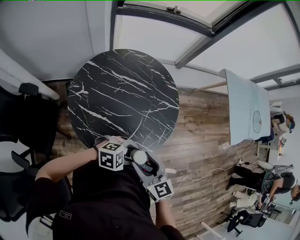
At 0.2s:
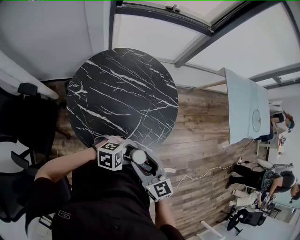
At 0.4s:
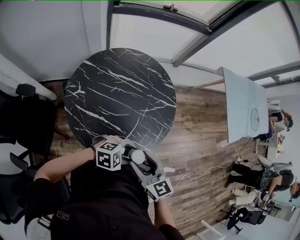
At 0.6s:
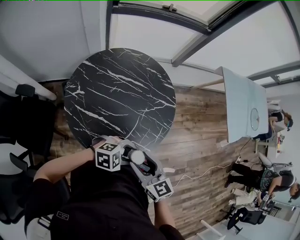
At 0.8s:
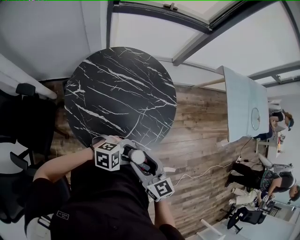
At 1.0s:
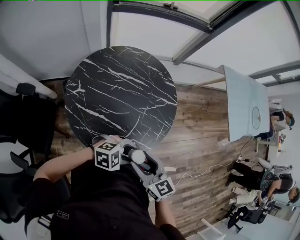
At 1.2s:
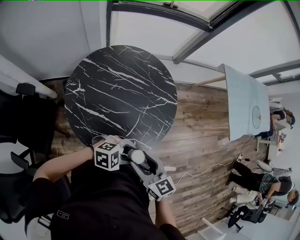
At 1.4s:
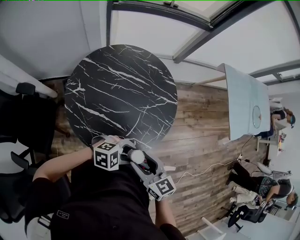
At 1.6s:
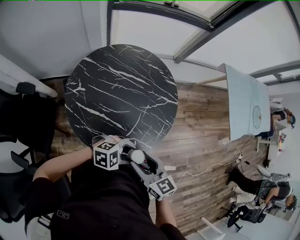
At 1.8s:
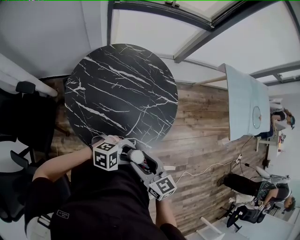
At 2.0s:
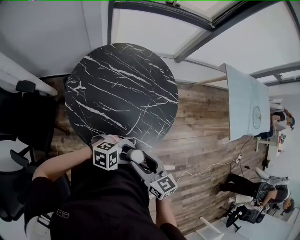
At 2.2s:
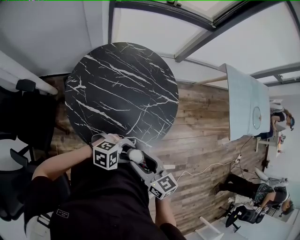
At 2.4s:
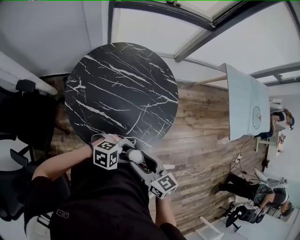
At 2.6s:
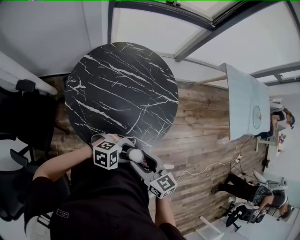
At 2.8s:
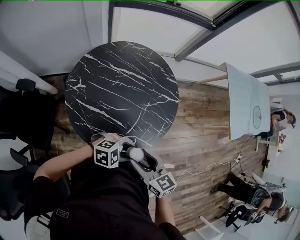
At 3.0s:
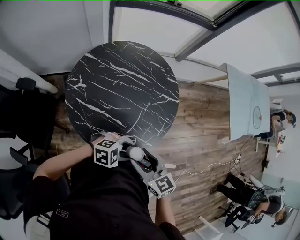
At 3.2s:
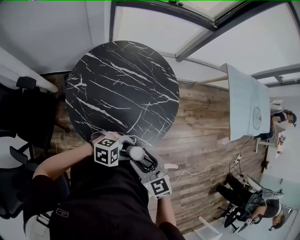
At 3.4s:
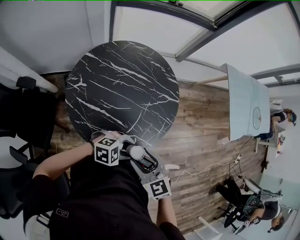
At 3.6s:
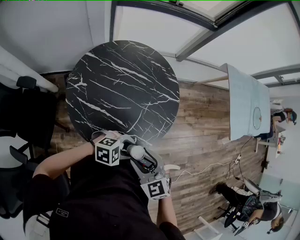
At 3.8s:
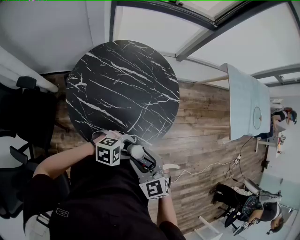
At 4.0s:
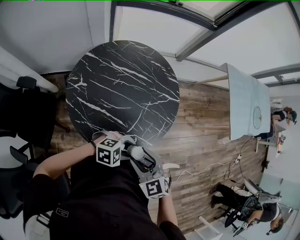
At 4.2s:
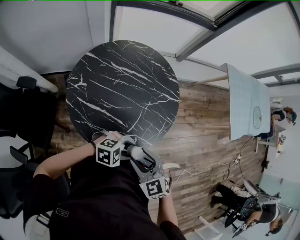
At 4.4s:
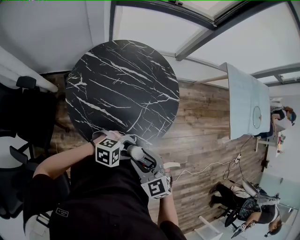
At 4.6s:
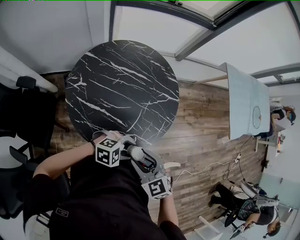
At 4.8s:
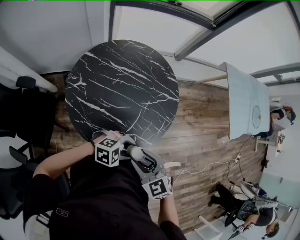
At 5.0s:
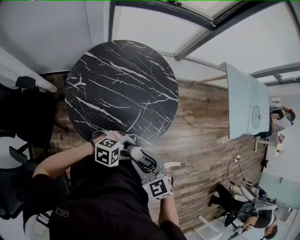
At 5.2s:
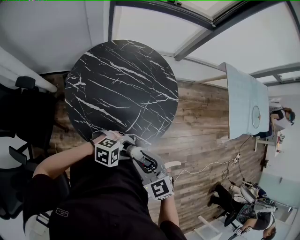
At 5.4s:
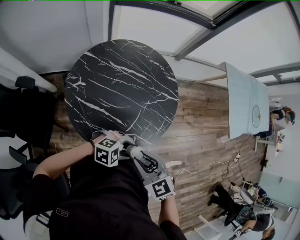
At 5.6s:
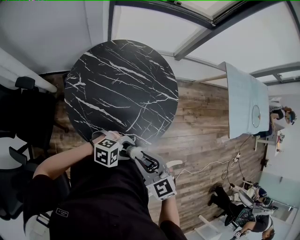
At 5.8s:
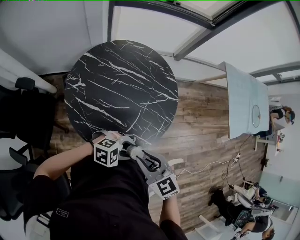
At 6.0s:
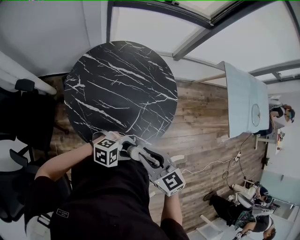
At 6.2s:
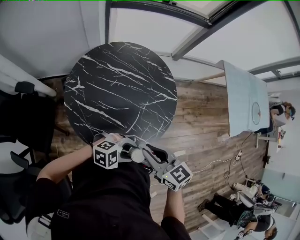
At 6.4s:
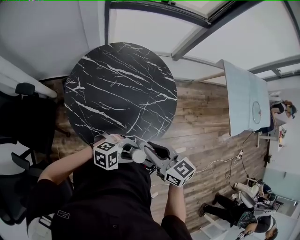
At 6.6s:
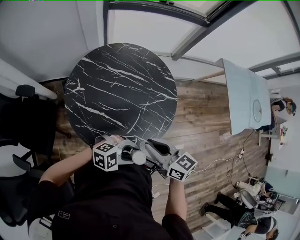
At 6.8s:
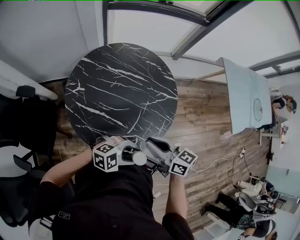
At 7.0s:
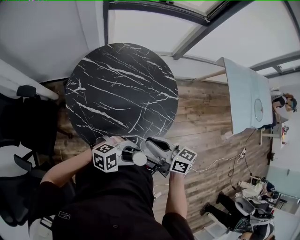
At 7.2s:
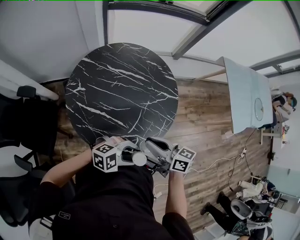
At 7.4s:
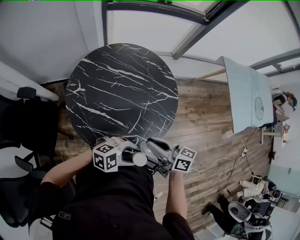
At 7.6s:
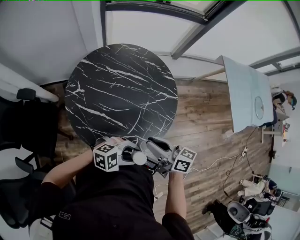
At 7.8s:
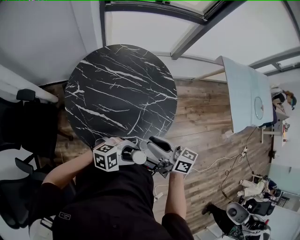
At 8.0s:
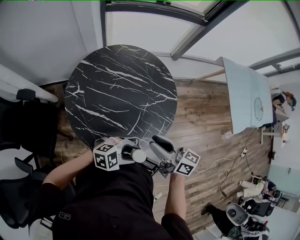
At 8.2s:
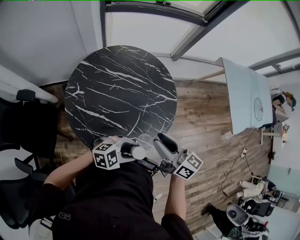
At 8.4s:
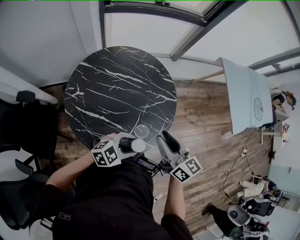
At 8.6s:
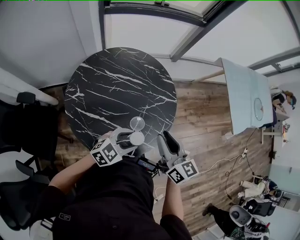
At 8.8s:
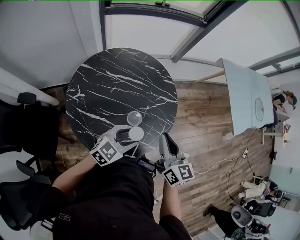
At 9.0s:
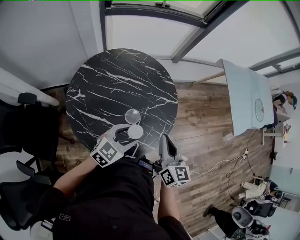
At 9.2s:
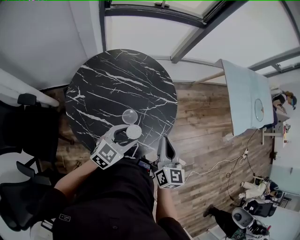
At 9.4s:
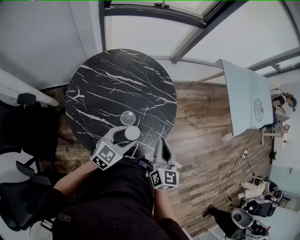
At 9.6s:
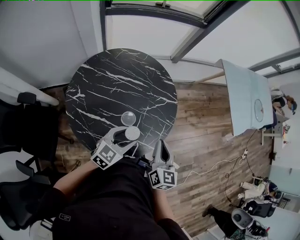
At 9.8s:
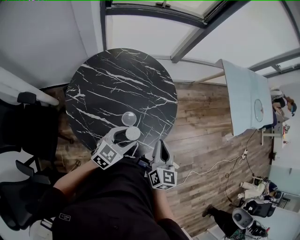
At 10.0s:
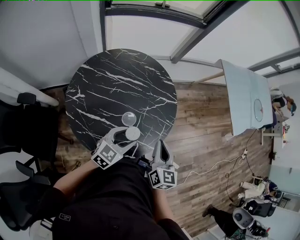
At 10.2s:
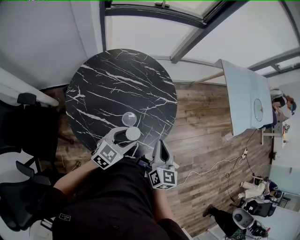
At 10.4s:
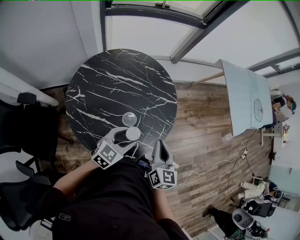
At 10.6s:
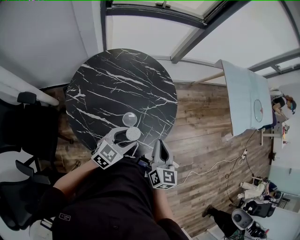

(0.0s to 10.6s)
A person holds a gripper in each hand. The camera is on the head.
0.0s - 3.0s: There are only small adjustments of the grippers.
3.0s - 4.6s: The right gripper rotates roughly 30 degrees.
4.6s - 6.0s: The right gripper closes up.
6.0s - 7.6s: The right gripper changes place by roughly 5 cm, and rotates roughly 40 degrees.
7.6s - 9.0s: The right gripper ends up approximately 10 cm from where it was, and swivels roughly 50 degrees. Meanwhile the left gripper ends up roughly 15 cm from where it was, and rotates some 40 degrees.
9.0s - 10.6s: The right gripper moves some 5 cm.

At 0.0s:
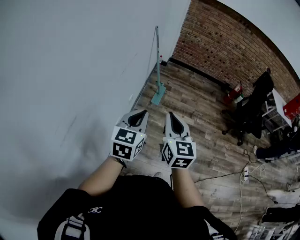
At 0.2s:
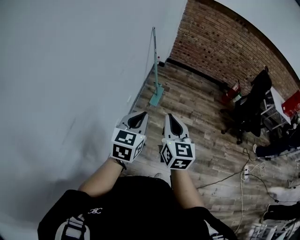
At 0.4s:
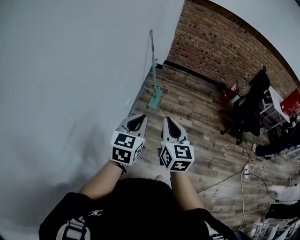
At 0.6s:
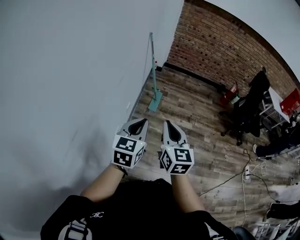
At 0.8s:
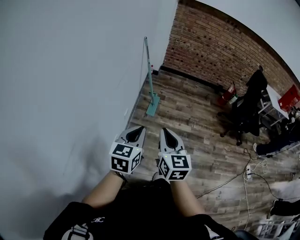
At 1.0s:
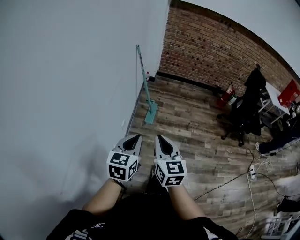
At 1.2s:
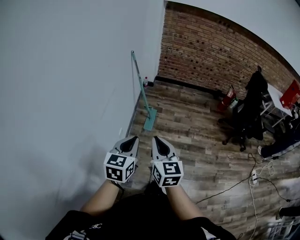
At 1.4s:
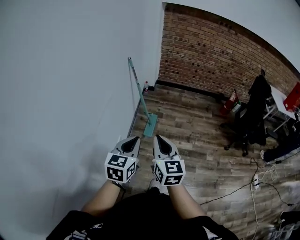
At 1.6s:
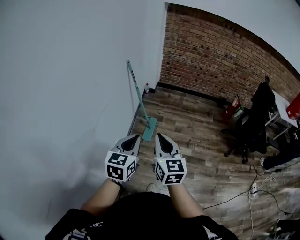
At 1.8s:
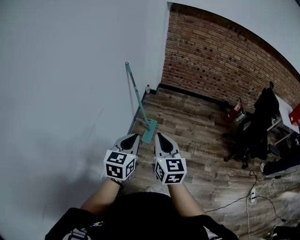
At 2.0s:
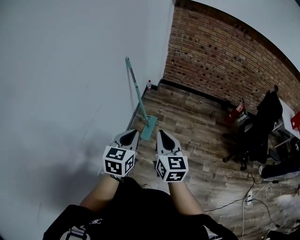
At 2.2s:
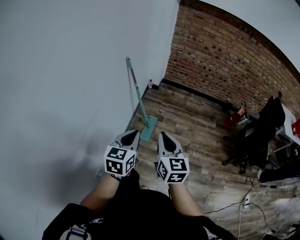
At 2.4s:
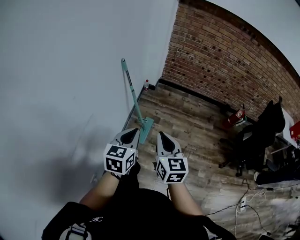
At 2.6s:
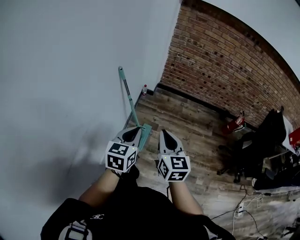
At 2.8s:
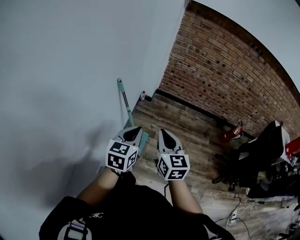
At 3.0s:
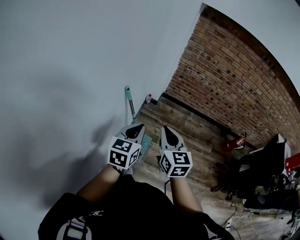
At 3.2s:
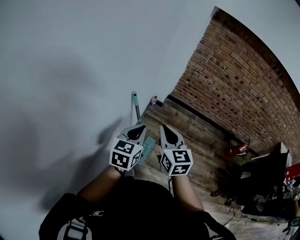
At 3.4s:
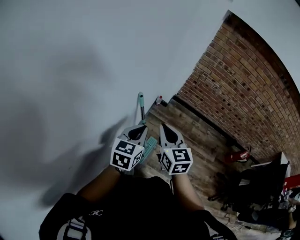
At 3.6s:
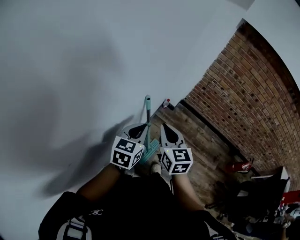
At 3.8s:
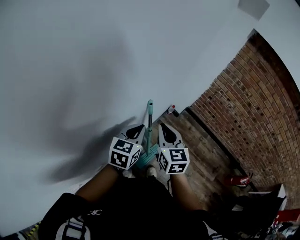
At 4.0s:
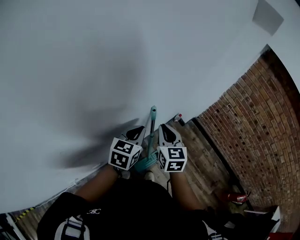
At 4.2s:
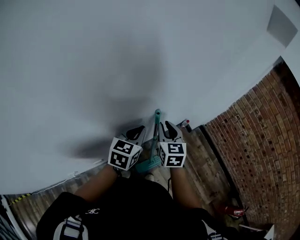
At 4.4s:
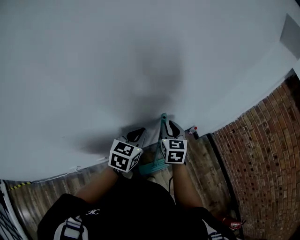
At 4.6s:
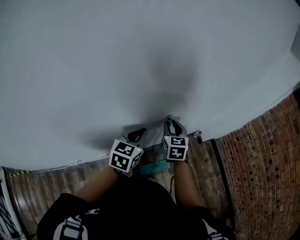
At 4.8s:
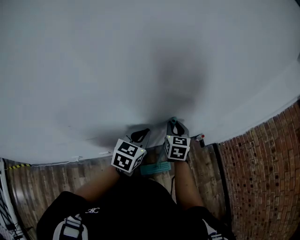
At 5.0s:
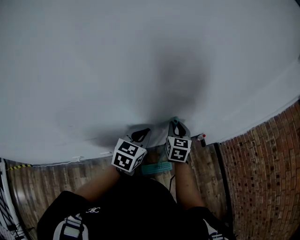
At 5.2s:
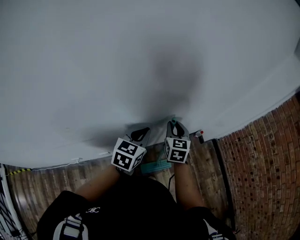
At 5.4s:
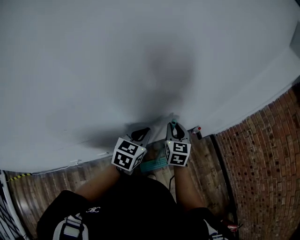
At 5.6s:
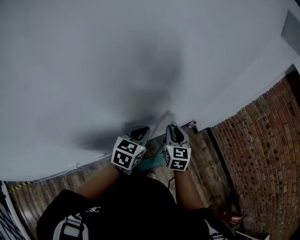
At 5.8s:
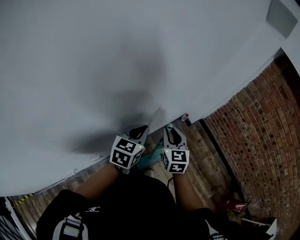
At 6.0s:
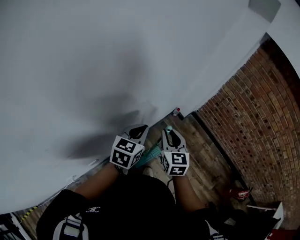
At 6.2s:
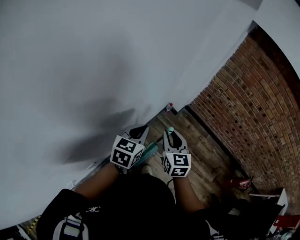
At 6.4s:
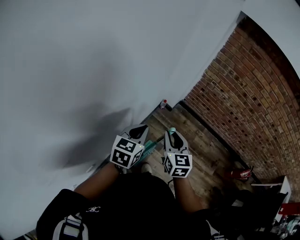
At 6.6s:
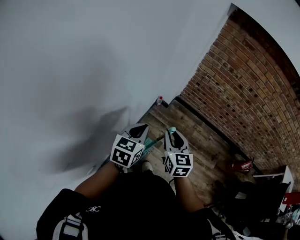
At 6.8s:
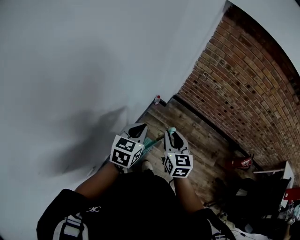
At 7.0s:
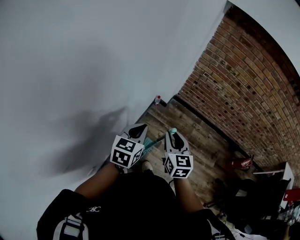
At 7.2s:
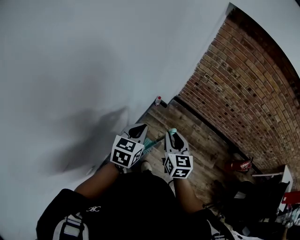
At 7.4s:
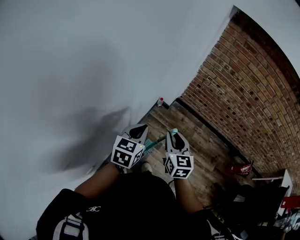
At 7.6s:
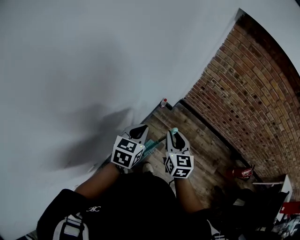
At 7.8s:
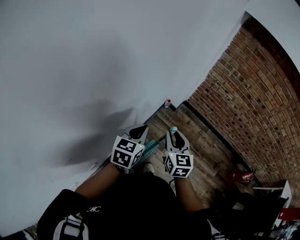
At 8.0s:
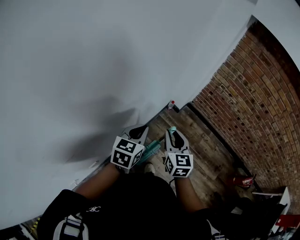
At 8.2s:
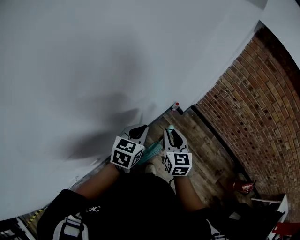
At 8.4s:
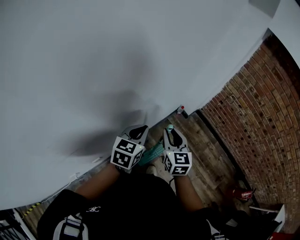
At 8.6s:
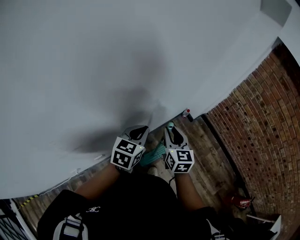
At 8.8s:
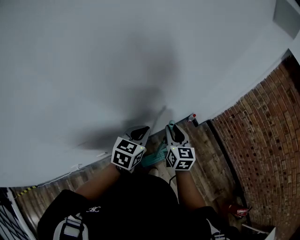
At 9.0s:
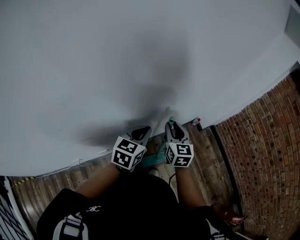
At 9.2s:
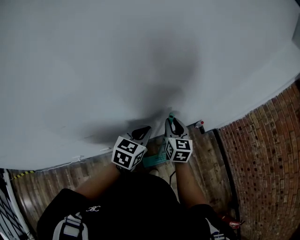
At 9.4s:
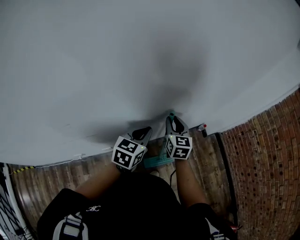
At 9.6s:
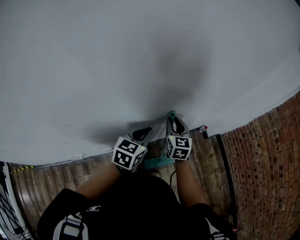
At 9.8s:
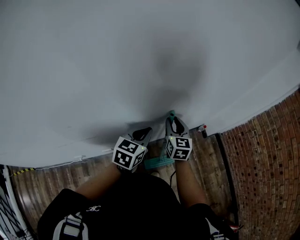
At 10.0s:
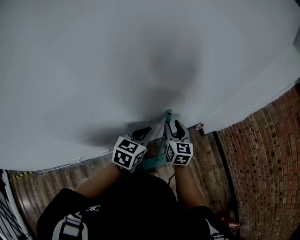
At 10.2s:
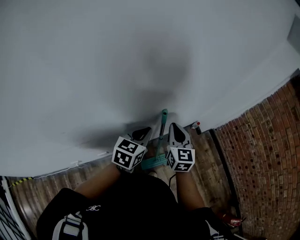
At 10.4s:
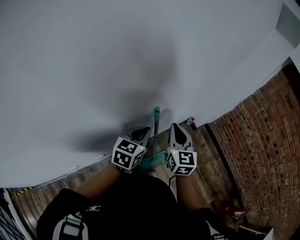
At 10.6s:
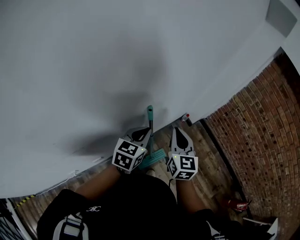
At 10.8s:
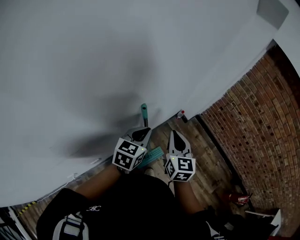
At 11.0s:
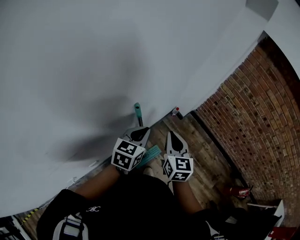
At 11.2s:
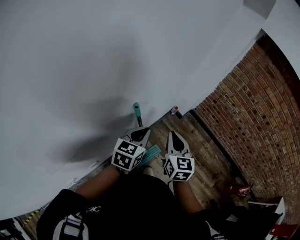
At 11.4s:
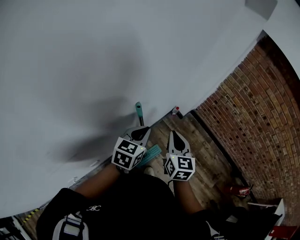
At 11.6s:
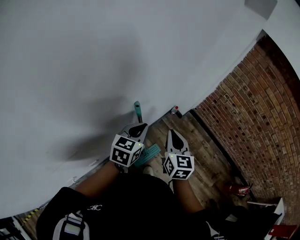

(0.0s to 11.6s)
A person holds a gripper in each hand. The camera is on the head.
0.0s - 1.4s: The two grippers go about 20 cm forward.
1.4s - 2.8s: Both grippers are carried forward, some 40 cm.
2.8s - 4.4s: The right gripper moves some 35 cm, and swivels some 40 degrees. Meanwhile the left gripper shifts by approximately 25 cm, and turns by approximately 40 degrees.
4.4s - 5.8s: The right gripper moves to the right and backward, approximately 5 cm.
5.8s - 7.2s: The two grippers go some 15 cm to the right. The right gripper swivels roughly 20 degrees. The left gripper turns by some 20 degrees.
7.2s - 8.8s: The right gripper shifts by roughly 15 cm, and swivels roughly 30 degrees. Meanwhile the left gripper changes place by roughly 10 cm, and changes its angle by some 20 degrees.
8.8s - 10.2s: The right gripper closes up.
10.2s - 11.6s: The left gripper is displaced to the right by about 10 cm. The right gripper is displaced to the right and backward by about 10 cm, and swivels roughly 20 degrees.

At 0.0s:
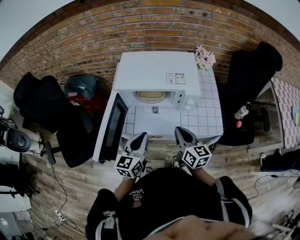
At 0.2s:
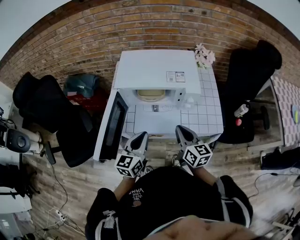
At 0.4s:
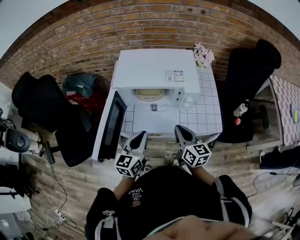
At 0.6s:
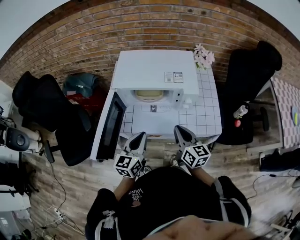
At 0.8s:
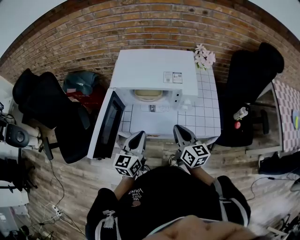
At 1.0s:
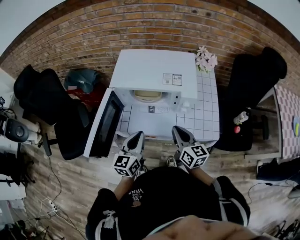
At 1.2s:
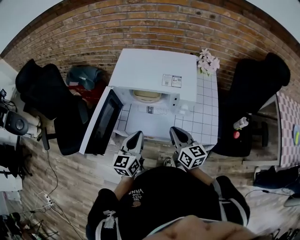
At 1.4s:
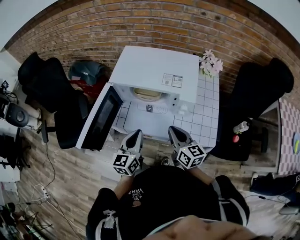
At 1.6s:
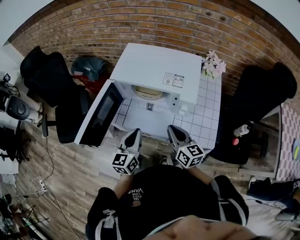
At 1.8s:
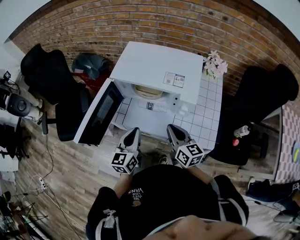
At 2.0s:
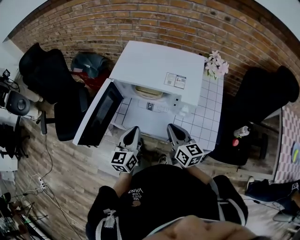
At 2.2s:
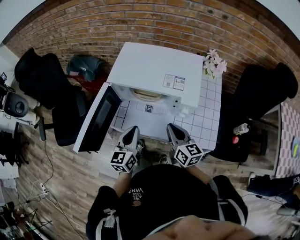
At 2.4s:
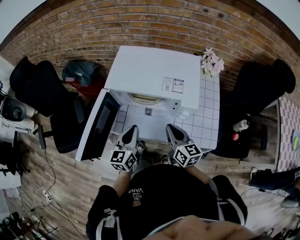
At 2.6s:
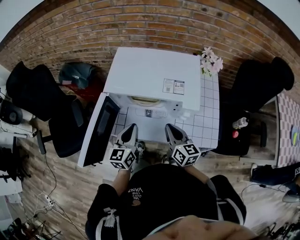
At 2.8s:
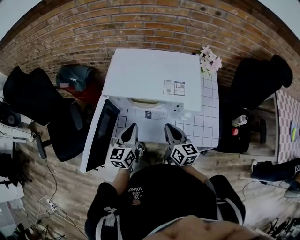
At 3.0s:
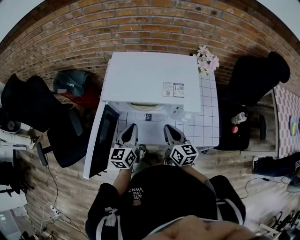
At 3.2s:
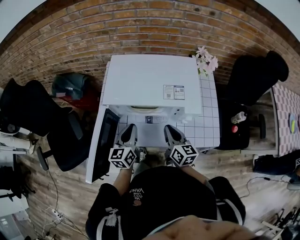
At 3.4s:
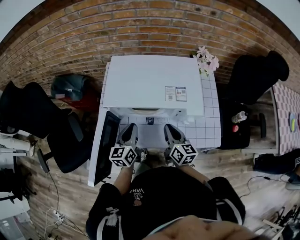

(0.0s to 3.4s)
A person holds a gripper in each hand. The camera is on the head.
0.0s - 1.6s: The right gripper moves approximately 5 cm.
1.6s - 3.4s: The right gripper heads forward, covering approximately 10 cm, and turns by about 20 degrees. Meanwhile the left gripper goes some 15 cm forward.
